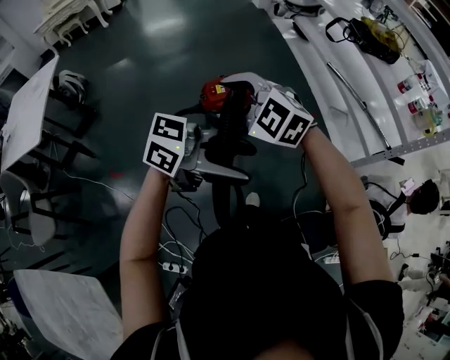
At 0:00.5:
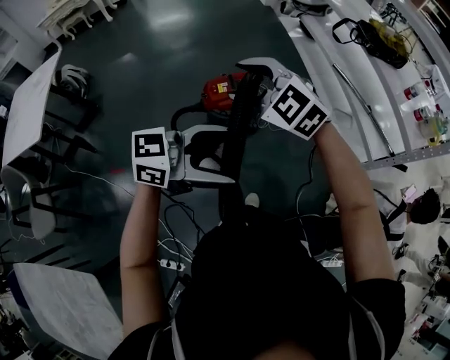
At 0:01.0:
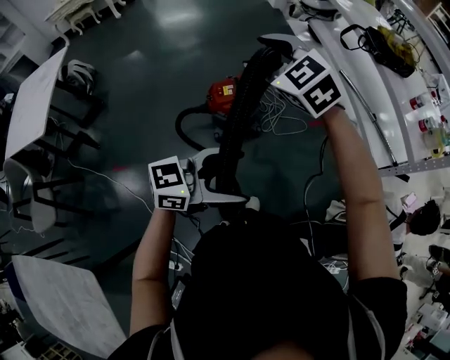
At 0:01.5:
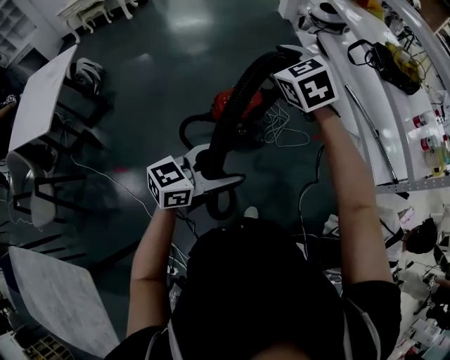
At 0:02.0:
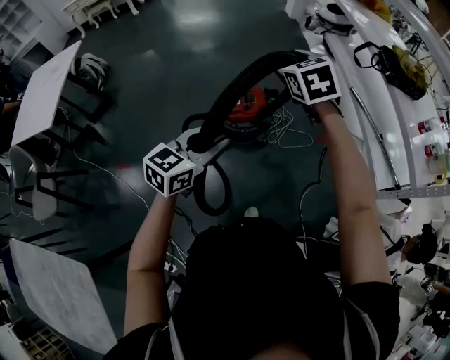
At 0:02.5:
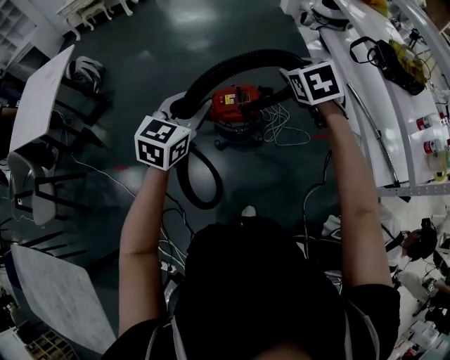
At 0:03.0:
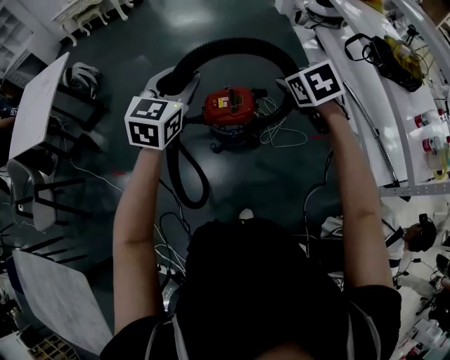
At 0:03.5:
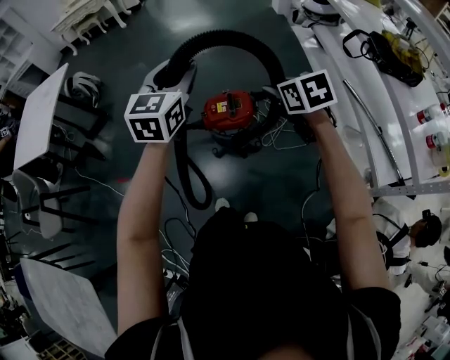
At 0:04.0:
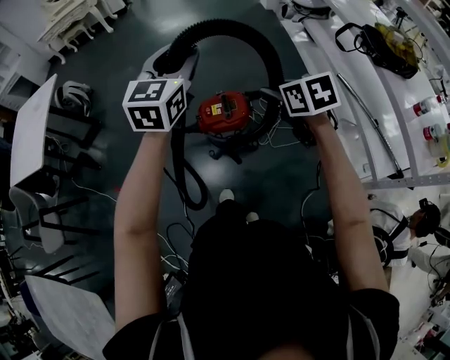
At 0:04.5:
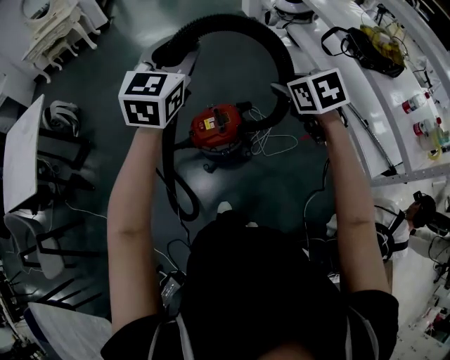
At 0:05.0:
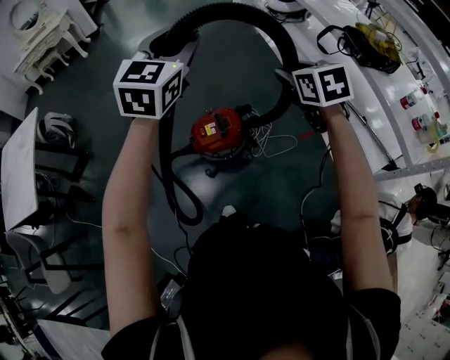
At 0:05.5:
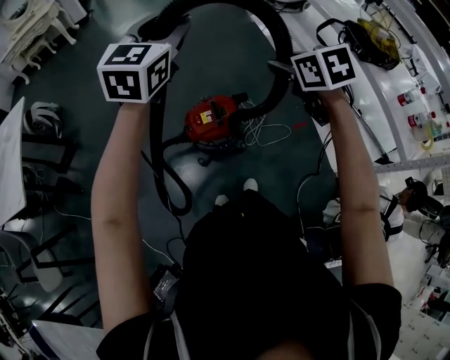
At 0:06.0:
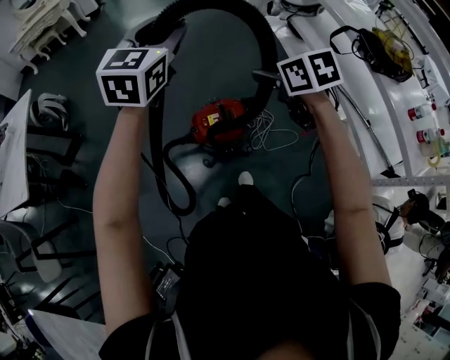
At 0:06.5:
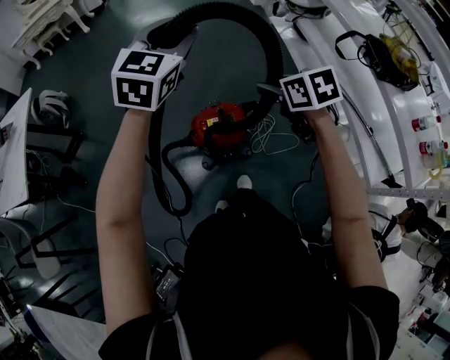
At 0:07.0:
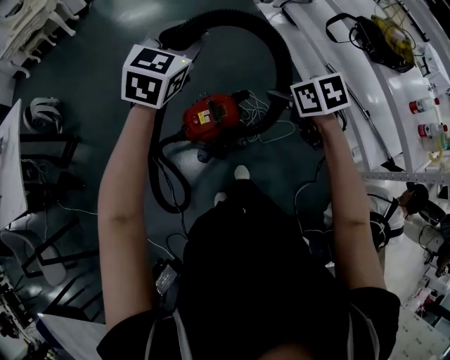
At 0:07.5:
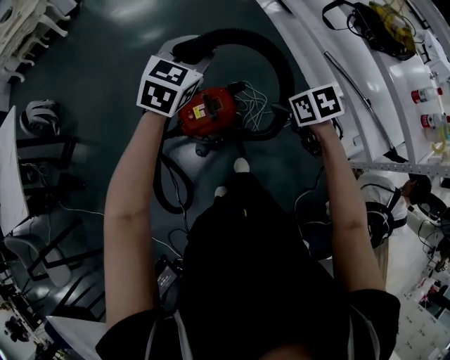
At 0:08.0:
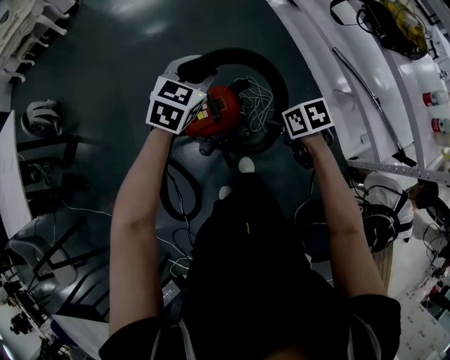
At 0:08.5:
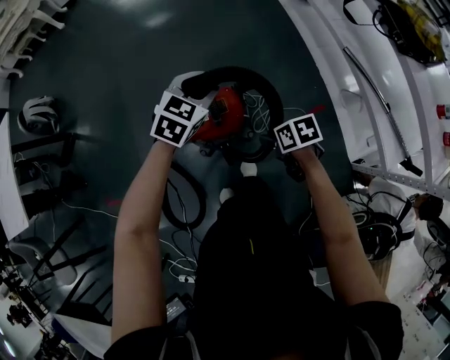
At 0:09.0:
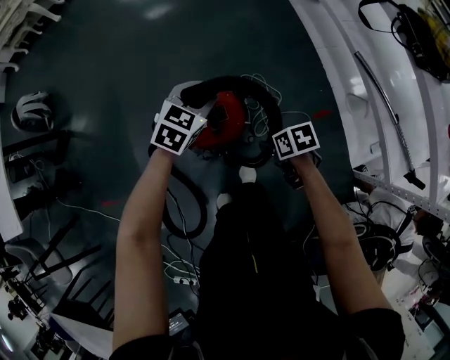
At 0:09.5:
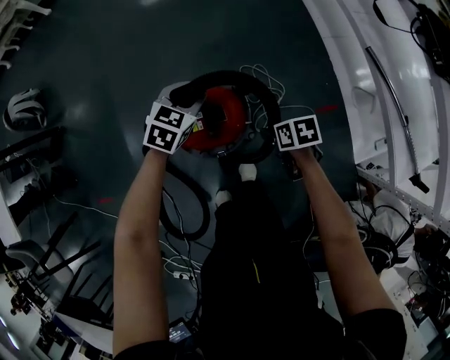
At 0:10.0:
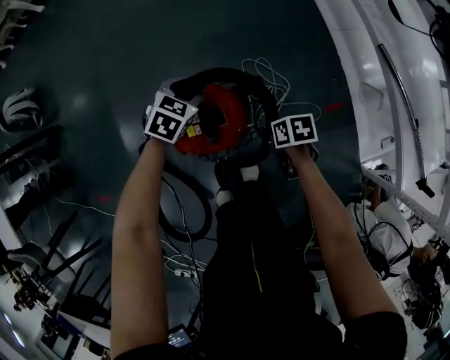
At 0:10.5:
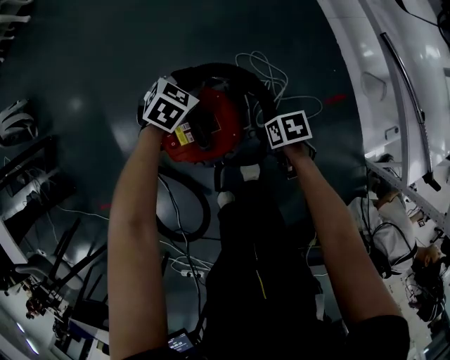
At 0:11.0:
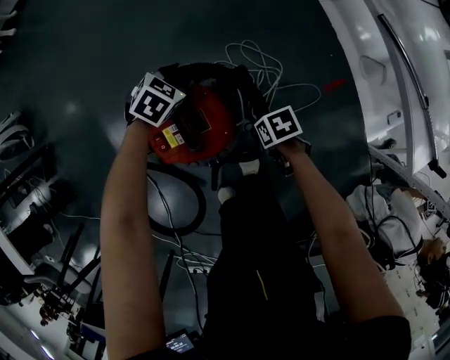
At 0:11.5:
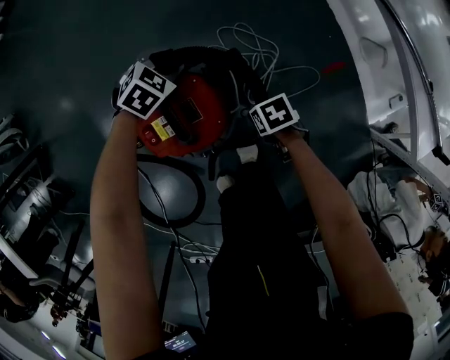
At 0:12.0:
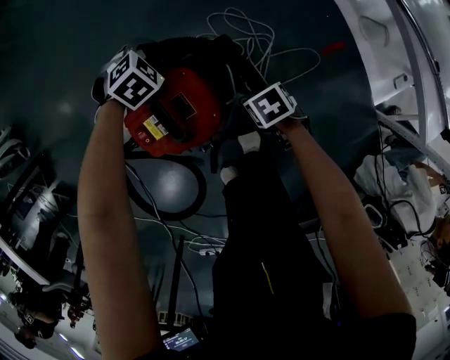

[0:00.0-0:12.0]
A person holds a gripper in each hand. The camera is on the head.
0:00.0 to 0:02.0: The right gripper changes place by about 25 cm, and swivels roughly 40 degrees, while the left gripper changes place by some 20 cm, swivels approximately 60 degrees, and closes.
0:02.0 to 0:04.0: The left gripper heads forward and upward, covering roughly 25 cm, and changes its angle by approximately 30 degrees. The right gripper travels downward and to the right by about 10 cm, and turns by roughly 30 degrees.
0:04.0 to 0:06.0: The two grippers go roughly 15 cm forward and to the left.
0:06.0 to 0:08.0: Both grippers travel together downward and to the right, about 25 cm. The right gripper rotates approximately 30 degrees. The left gripper rotates roughly 30 degrees.
0:08.0 to 0:10.0: The two grippers go about 30 cm downward. The left gripper rotates some 20 degrees.
0:10.0 to 0:12.0: Both grippers travel together downward, some 15 cm. The left gripper changes its angle by about 40 degrees.

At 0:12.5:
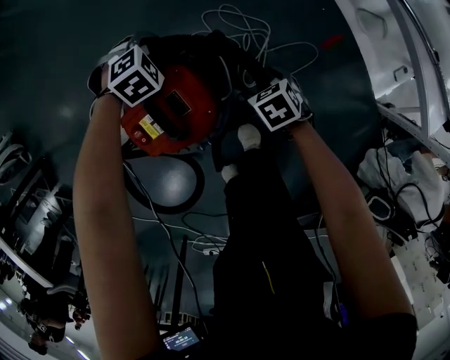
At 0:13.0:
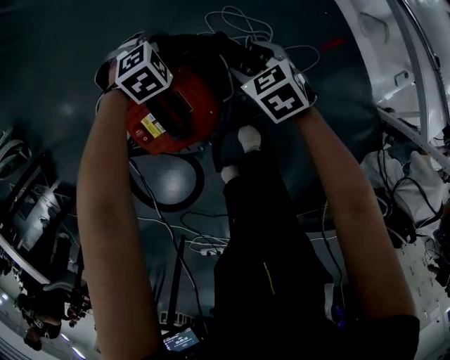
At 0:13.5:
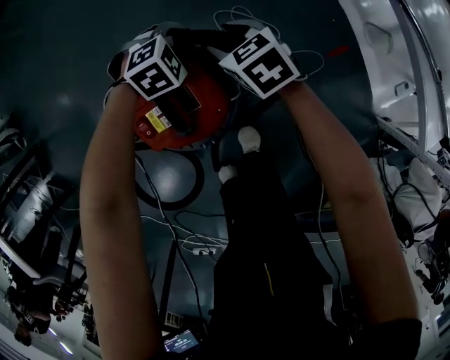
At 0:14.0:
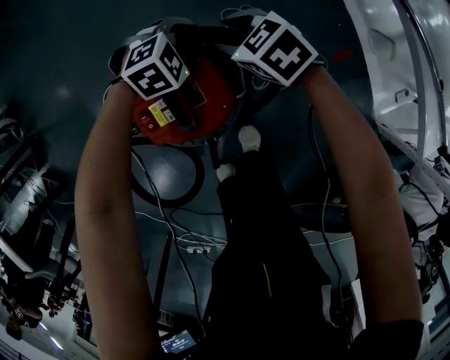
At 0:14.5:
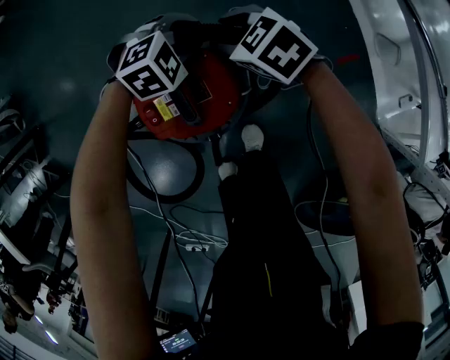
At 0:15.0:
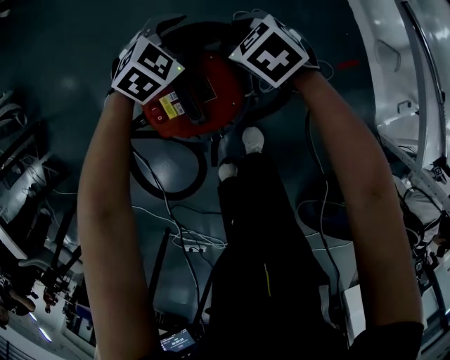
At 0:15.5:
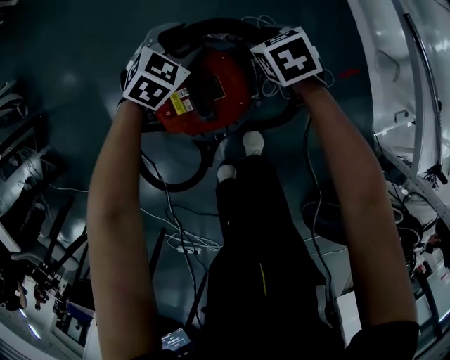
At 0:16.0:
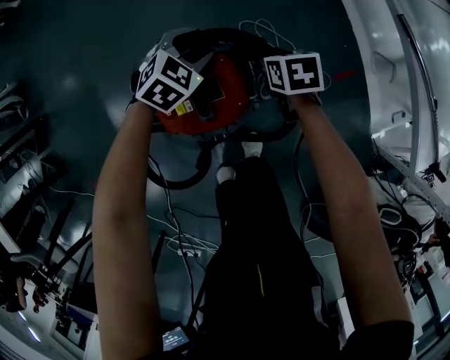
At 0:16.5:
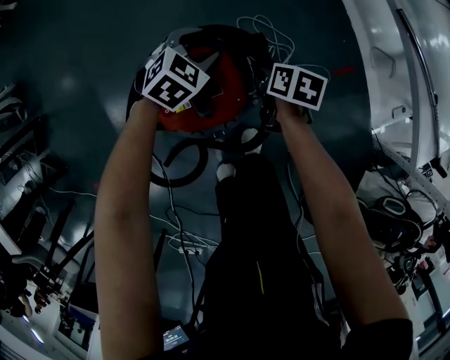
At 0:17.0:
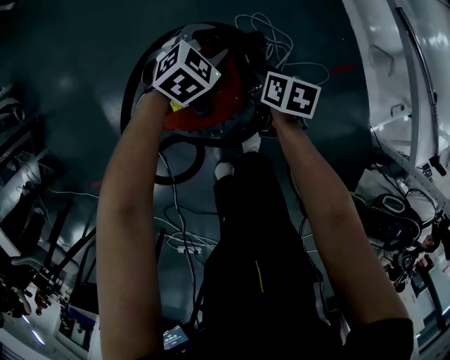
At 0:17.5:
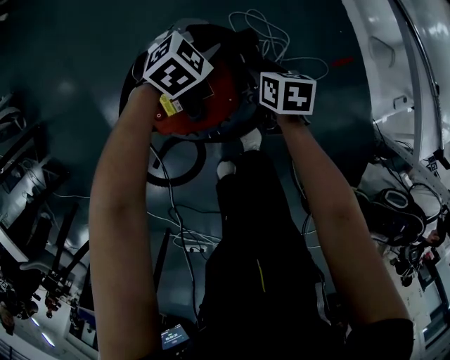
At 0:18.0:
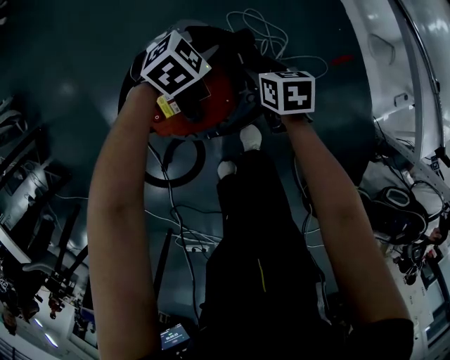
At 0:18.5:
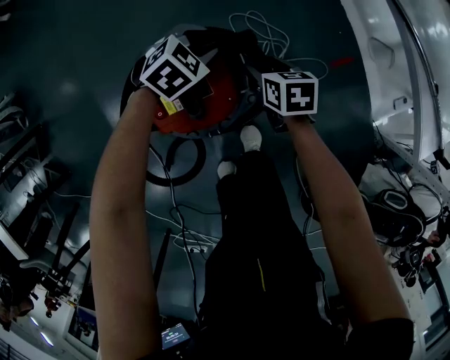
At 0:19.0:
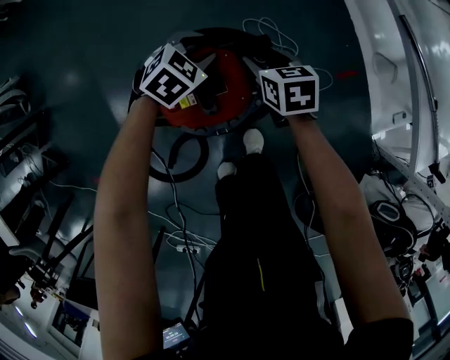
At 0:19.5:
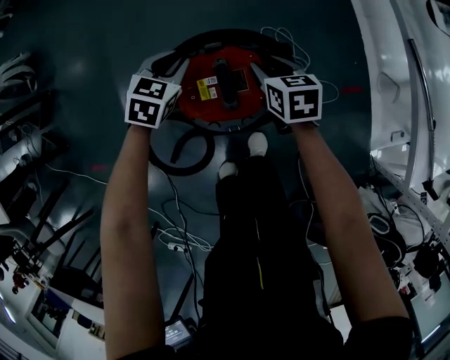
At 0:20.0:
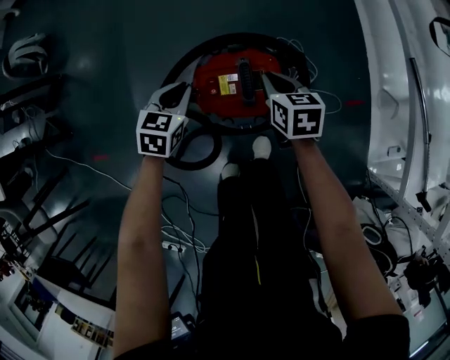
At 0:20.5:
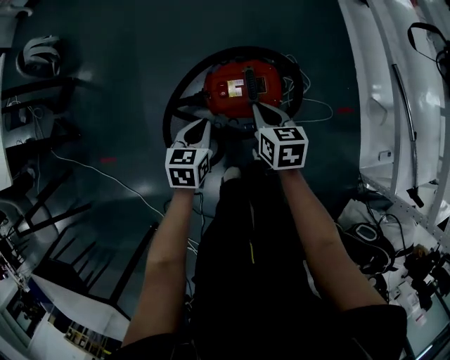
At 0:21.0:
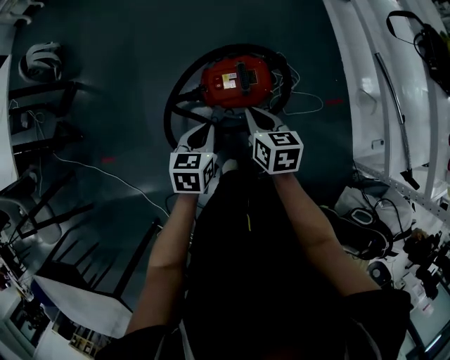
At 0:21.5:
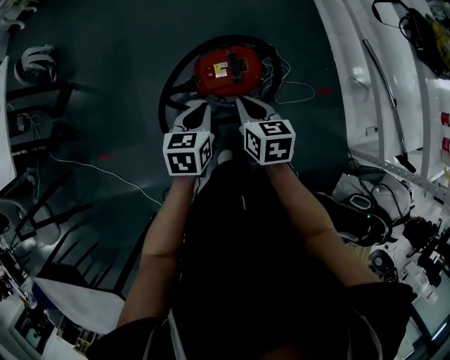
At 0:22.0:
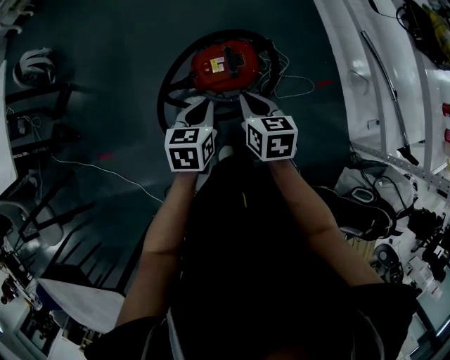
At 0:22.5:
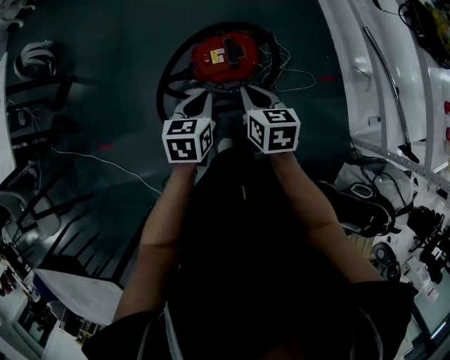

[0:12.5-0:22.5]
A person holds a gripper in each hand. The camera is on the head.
0:12.5 to 0:14.5: The right gripper ends up approximately 25 cm from where it was, changes its angle by roughly 40 degrees, and closes. Meanwhile the left gripper is displaced upward by some 5 cm.
0:14.5 to 0:16.5: The left gripper changes its angle by about 30 degrees, while the right gripper shifts roughly 10 cm to the right, backward and downward, and twists about 70 degrees clockwise, seen from behind.
0:16.5 to 0:18.5: The right gripper turns by some 20 degrees.
0:18.5 to 0:20.5: The right gripper goes about 30 cm upward, to the left and backward, and closes; the left gripper heads backward, to the left and upward, covering roughly 35 cm, rotates around the line of its fingers by roughly 60 degrees, counterclockwise from behind, and closes its fingers.
0:20.5 to 0:22.5: The right gripper heads upward and backward, covering approximately 15 cm. The left gripper is displaced upward, backward and to the right by roughly 15 cm.

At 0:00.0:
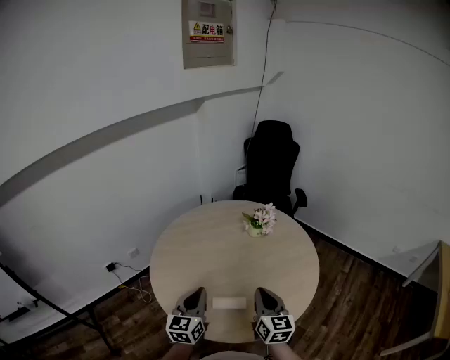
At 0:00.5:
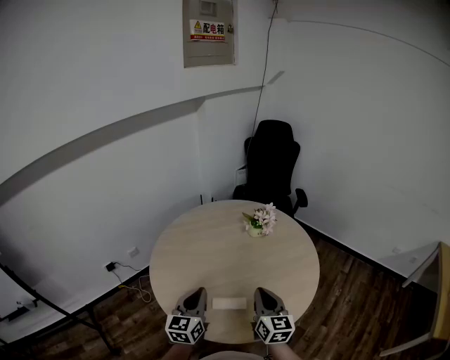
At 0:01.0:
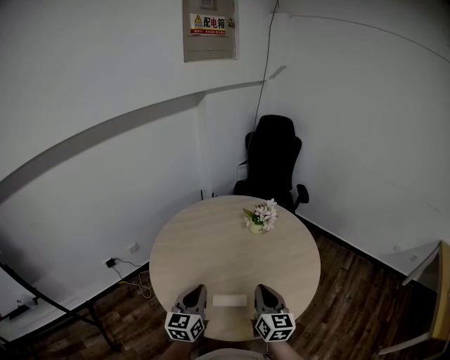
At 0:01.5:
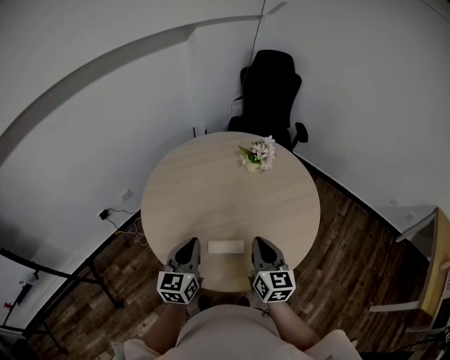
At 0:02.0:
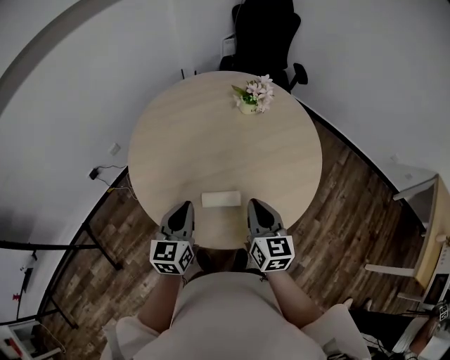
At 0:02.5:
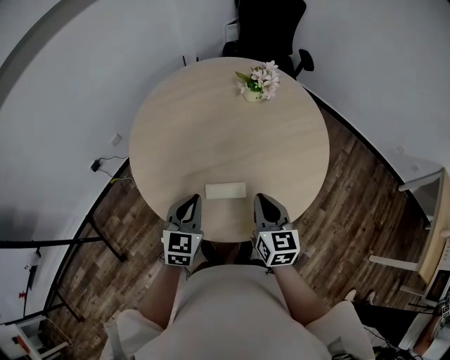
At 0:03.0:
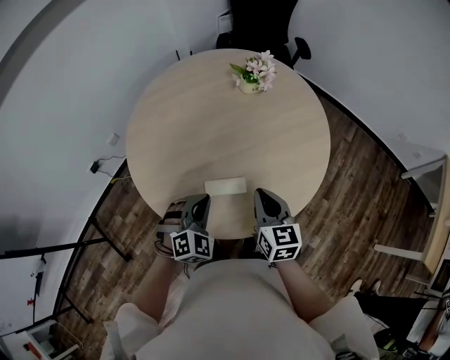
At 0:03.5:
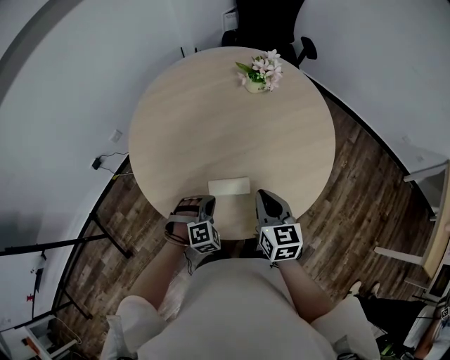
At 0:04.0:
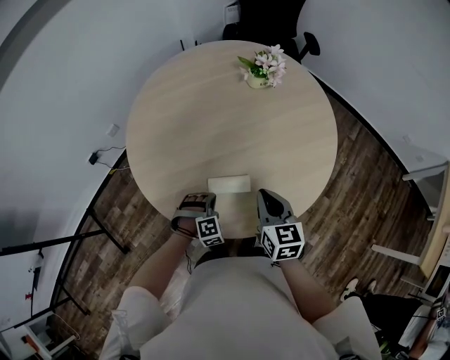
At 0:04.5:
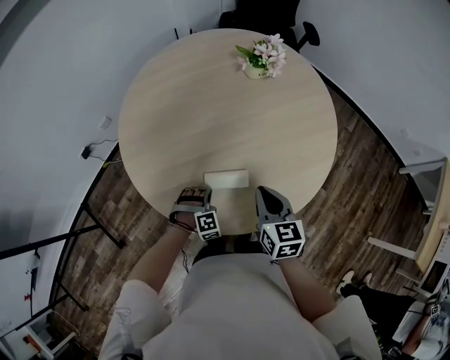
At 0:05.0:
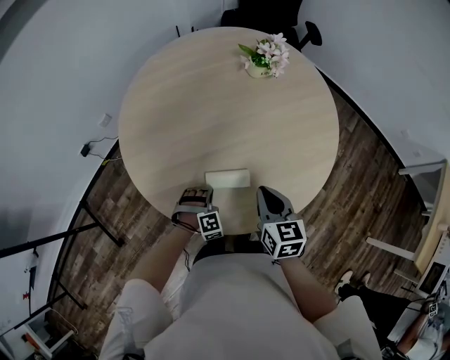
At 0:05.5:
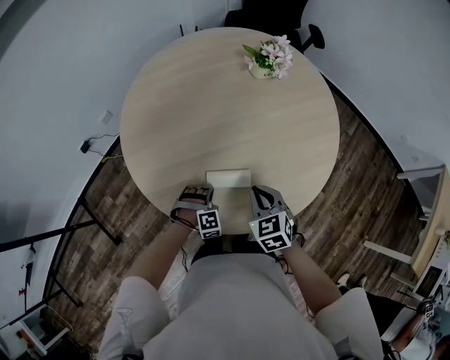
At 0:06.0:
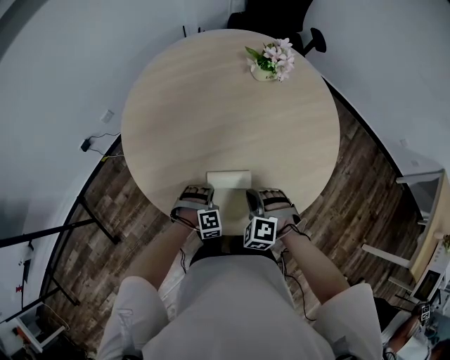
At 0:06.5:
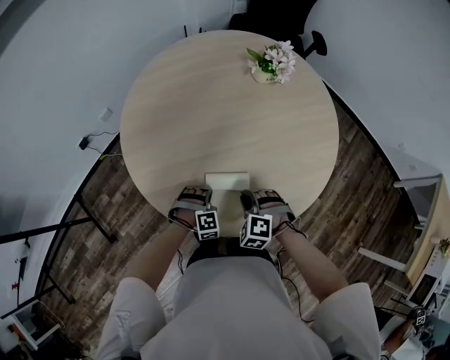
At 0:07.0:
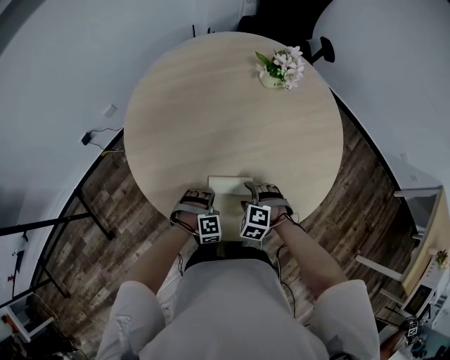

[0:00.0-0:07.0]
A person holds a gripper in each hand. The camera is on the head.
0:00.0 to 0:02.0: Both grippers travel together downward, about 10 cm.
0:02.0 to 0:03.5: The right gripper moves downward, some 5 cm. Meanwhile the left gripper shifts some 20 cm downward, and twists approximately 70 degrees clockwise, seen from behind.
0:03.5 to 0:05.0: The left gripper travels downward by some 10 cm.
0:05.0 to 0:07.0: The right gripper goes about 15 cm downward, twists approximately 70 degrees counterclockwise, seen from behind, and opens up.
